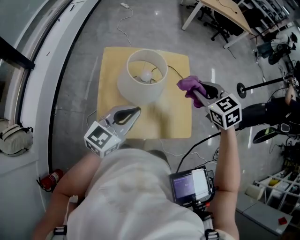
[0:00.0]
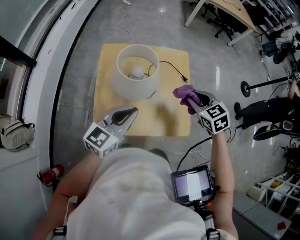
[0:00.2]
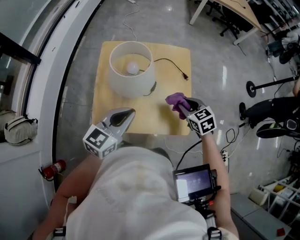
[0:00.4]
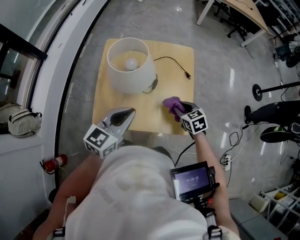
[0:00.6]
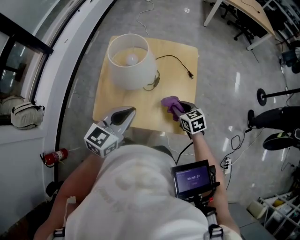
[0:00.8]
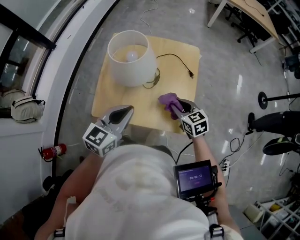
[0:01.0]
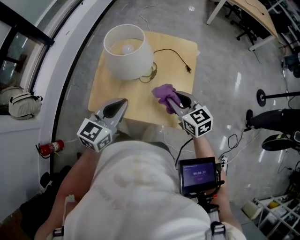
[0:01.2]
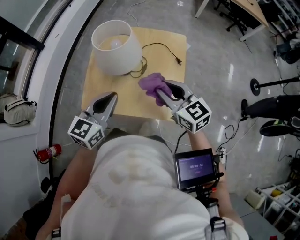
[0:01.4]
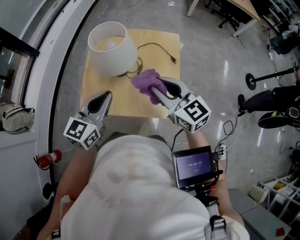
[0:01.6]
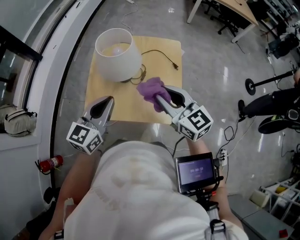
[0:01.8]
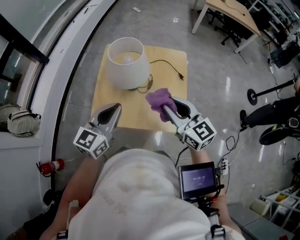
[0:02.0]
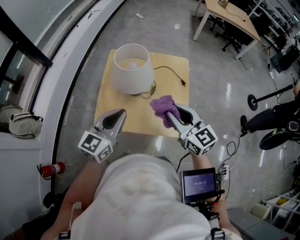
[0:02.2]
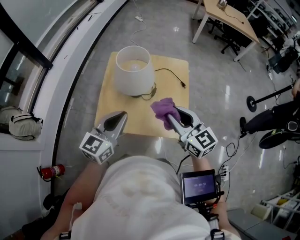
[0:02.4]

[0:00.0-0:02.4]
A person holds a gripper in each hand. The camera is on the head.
0:00.0 to 0:01.2: The left gripper heads backward and to the right, covering roughly 10 cm, and turns by approximately 20 degrees. Meanwhile the right gripper is displaced downward and backward by some 15 cm, and rotates some 30 degrees.
0:01.2 to 0:02.4: The left gripper shifts by about 5 cm. Meanwhile the right gripper goes approximately 15 cm upward and backward.

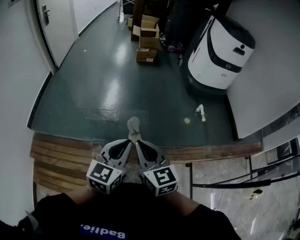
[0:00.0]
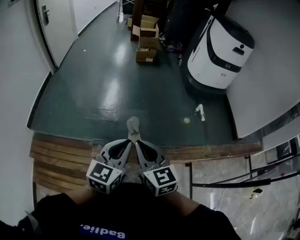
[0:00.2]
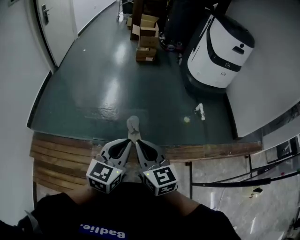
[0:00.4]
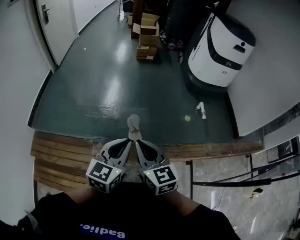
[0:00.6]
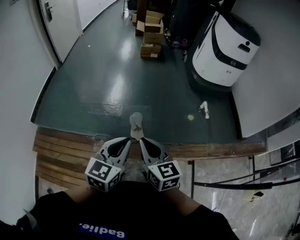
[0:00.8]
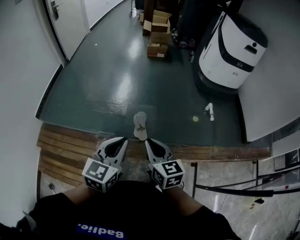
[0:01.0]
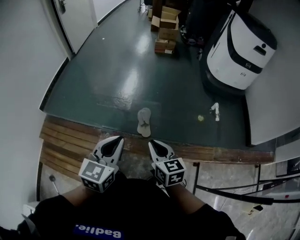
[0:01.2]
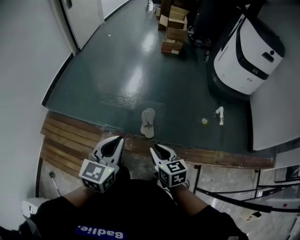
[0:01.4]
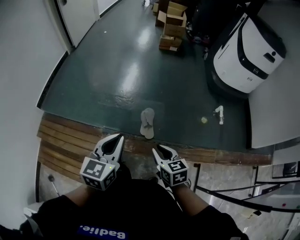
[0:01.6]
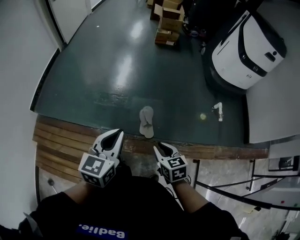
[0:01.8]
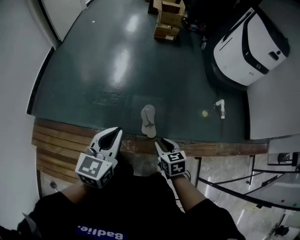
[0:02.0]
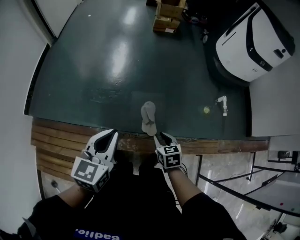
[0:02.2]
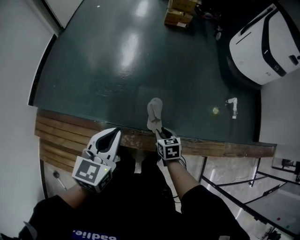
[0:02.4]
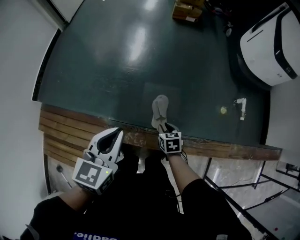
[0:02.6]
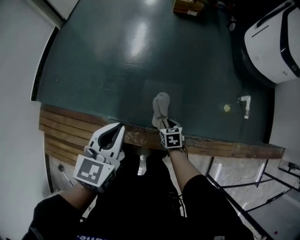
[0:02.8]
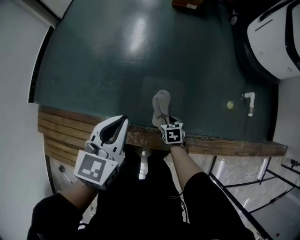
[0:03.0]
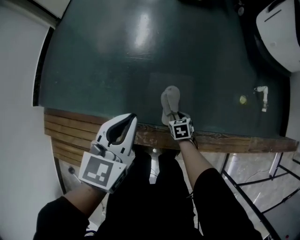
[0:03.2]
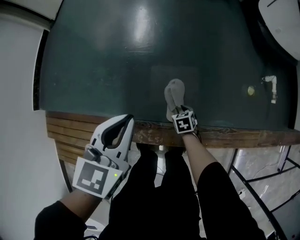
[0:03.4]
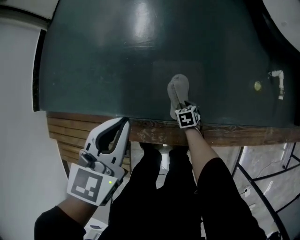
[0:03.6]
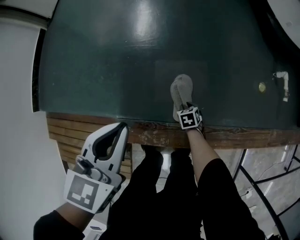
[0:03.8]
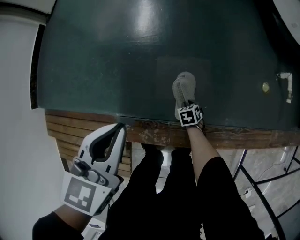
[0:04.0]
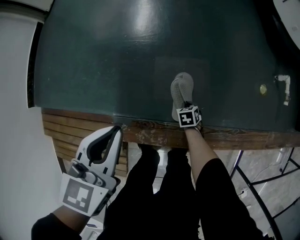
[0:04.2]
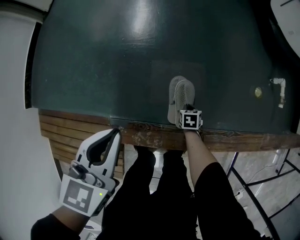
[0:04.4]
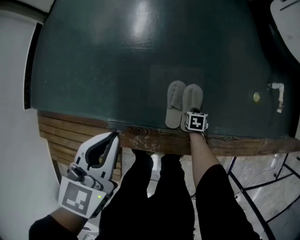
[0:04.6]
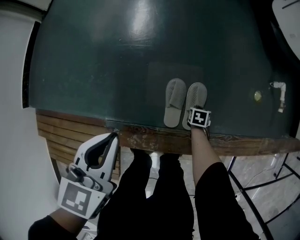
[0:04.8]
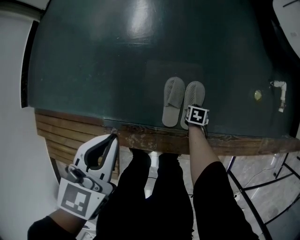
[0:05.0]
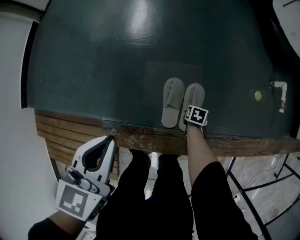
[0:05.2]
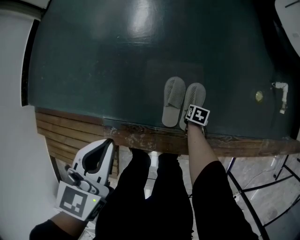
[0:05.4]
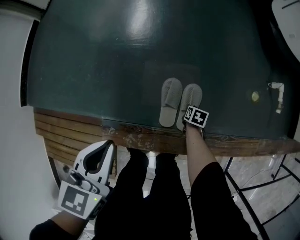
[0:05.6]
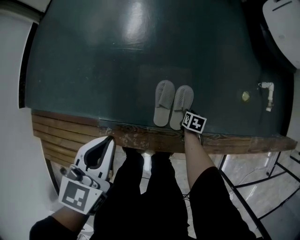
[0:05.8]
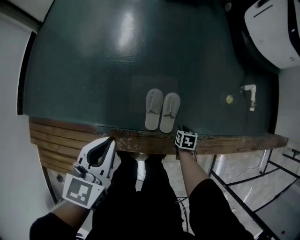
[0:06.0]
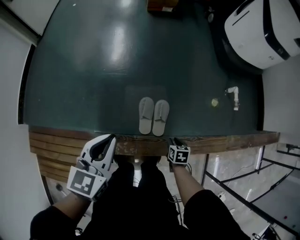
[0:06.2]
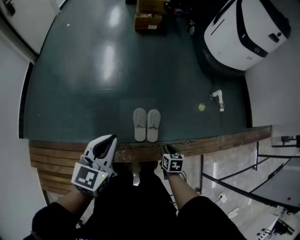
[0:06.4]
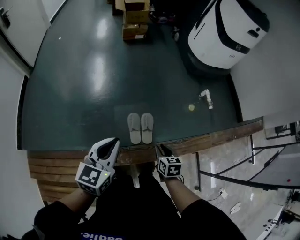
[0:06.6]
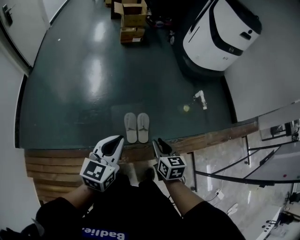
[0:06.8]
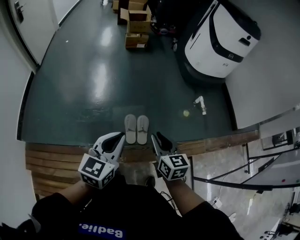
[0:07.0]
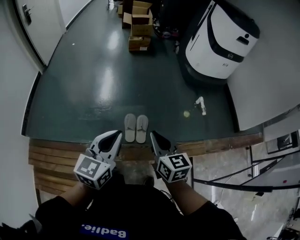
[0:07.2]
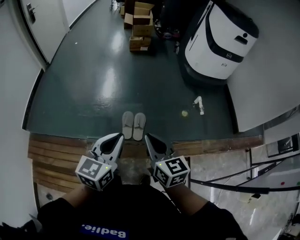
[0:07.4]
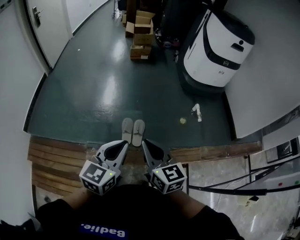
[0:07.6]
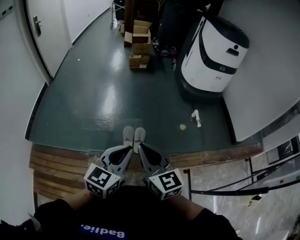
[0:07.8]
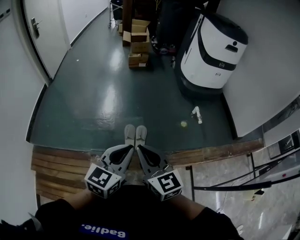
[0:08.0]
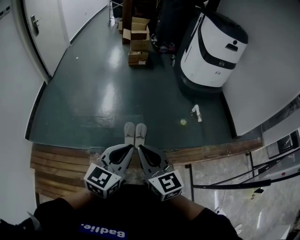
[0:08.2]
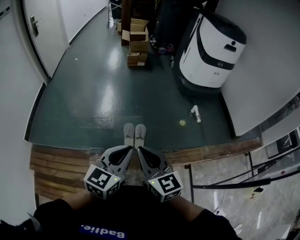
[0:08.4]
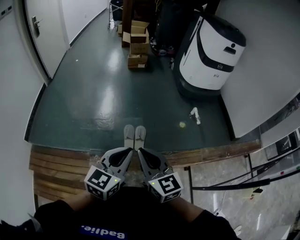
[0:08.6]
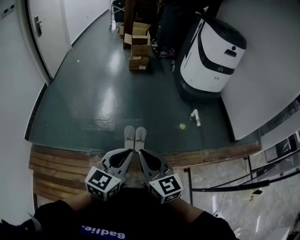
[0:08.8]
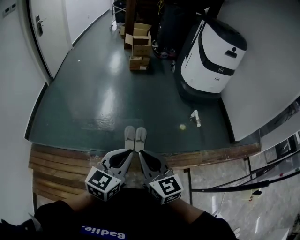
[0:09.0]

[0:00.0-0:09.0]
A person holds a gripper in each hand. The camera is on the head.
0:00.0 to 0:01.6: The right gripper heads downward, covering about 15 cm, and rotates roughly 30 degrees. Meanwhile the left gripper heads to the left, forward and downward, covering some 10 cm.
0:01.6 to 0:03.0: The right gripper goes roughly 40 cm downward and forward, and turns by approximately 30 degrees, while the left gripper heads forward and downward, covering some 30 cm.
0:03.0 to 0:04.4: The right gripper shifts roughly 20 cm downward; the left gripper heads downward, covering roughly 15 cm.
0:04.4 to 0:06.0: The right gripper changes place by some 15 cm, and opens up, while the left gripper moves upward, some 5 cm.
0:06.0 to 0:07.6: The right gripper shifts approximately 70 cm upward and backward, tips its fingers upward by roughly 60 degrees, and closes. The left gripper shifts some 40 cm upward, backward and to the right, and turns by about 20 degrees.
0:07.6 to 0:09.0: The grippers both shift backward by some 5 cm.

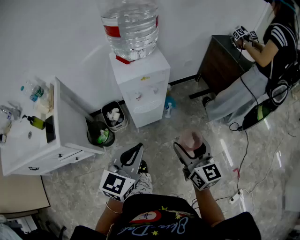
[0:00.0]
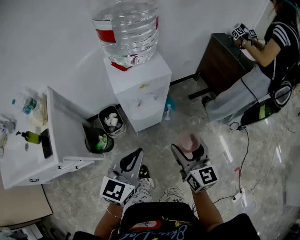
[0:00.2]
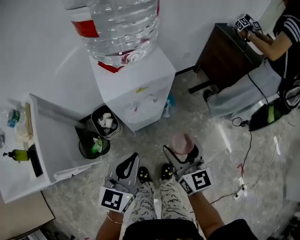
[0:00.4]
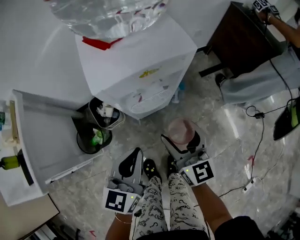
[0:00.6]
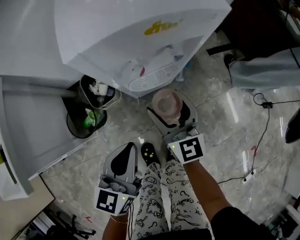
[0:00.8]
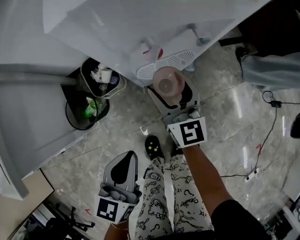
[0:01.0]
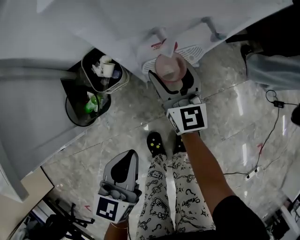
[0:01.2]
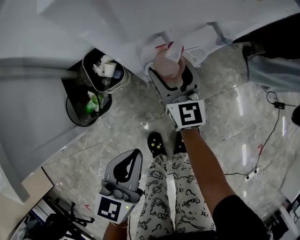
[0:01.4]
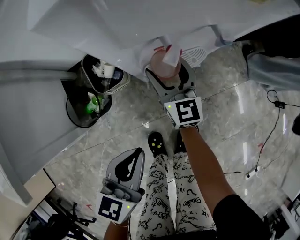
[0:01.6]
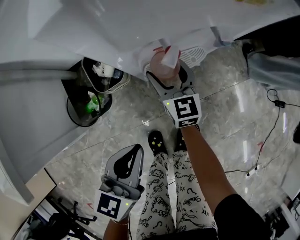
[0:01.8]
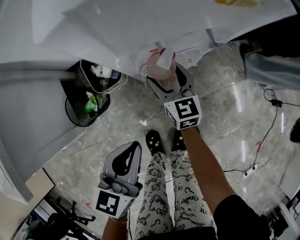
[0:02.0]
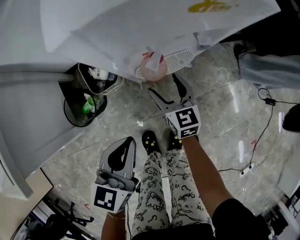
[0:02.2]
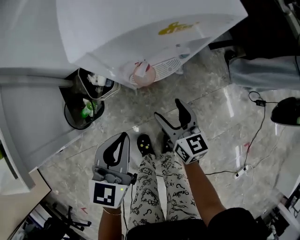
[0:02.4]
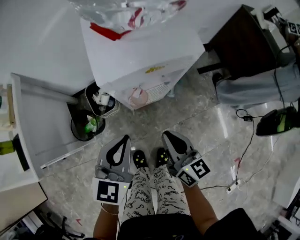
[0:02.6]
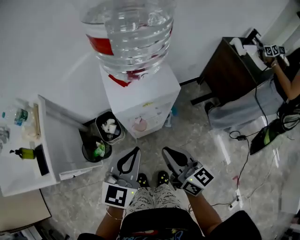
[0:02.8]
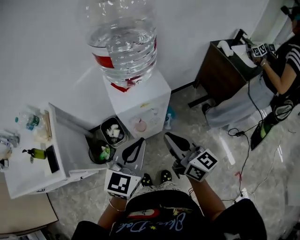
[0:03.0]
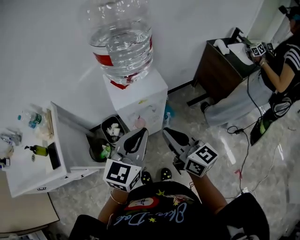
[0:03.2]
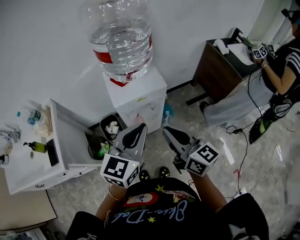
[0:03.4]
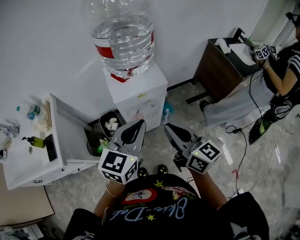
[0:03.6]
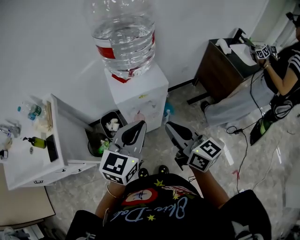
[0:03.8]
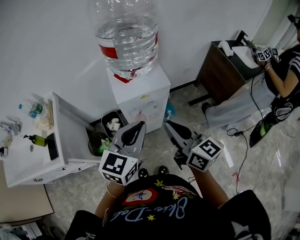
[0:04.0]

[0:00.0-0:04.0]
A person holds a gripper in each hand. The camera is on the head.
0:00.0 to 0:01.4: The right gripper travels downward, forward and to the left by approximately 60 cm. Meanwhile the left gripper travels downward by roughly 35 cm.
0:01.4 to 0:02.6: The left gripper is displaced upward by about 15 cm. Meanwhile the right gripper goes approximately 25 cm upward, backward and to the right, rotates about 30 degrees, and closes its fingers.
0:02.6 to 0:04.0: Both grippers travel together upward, roughly 25 cm.

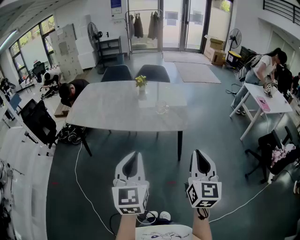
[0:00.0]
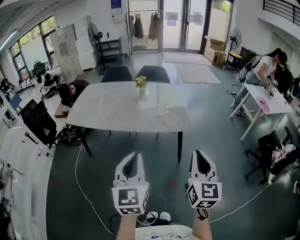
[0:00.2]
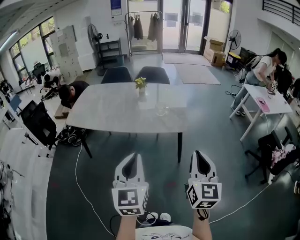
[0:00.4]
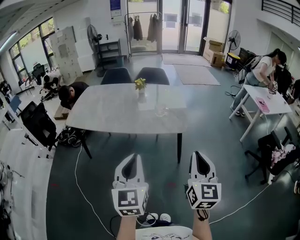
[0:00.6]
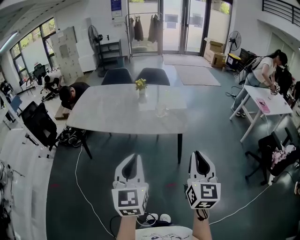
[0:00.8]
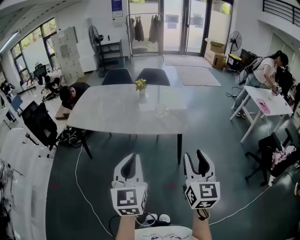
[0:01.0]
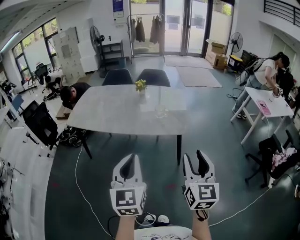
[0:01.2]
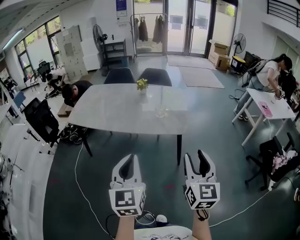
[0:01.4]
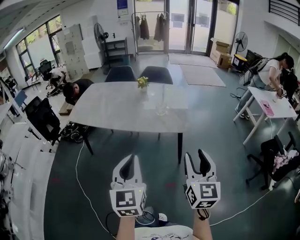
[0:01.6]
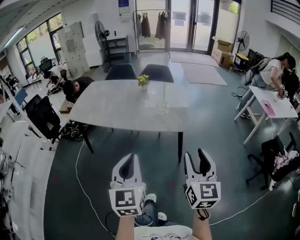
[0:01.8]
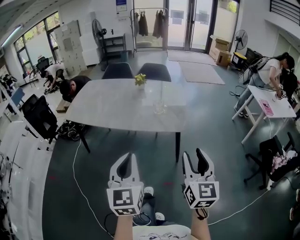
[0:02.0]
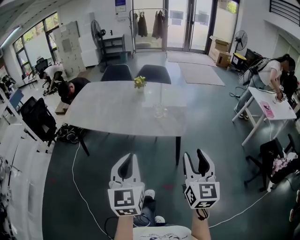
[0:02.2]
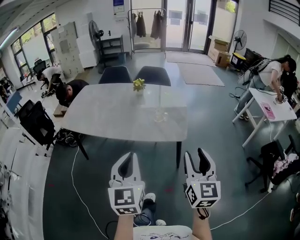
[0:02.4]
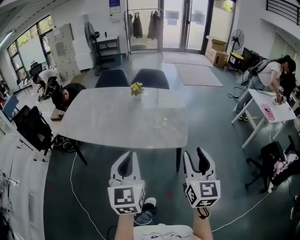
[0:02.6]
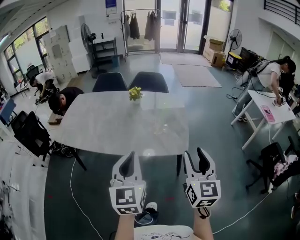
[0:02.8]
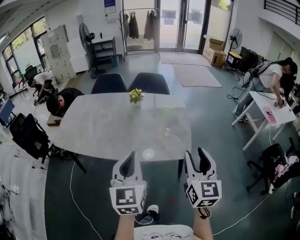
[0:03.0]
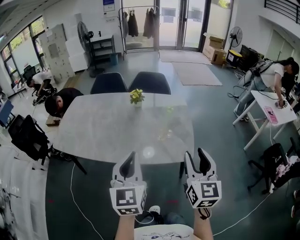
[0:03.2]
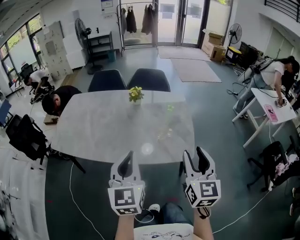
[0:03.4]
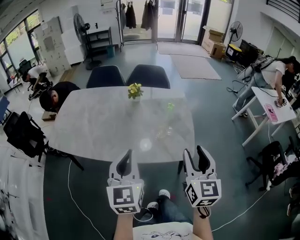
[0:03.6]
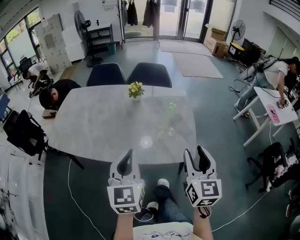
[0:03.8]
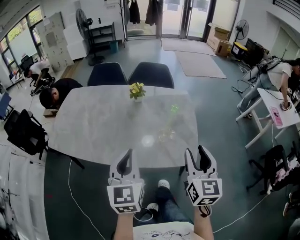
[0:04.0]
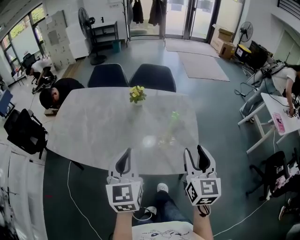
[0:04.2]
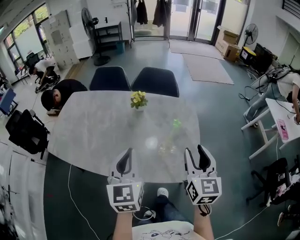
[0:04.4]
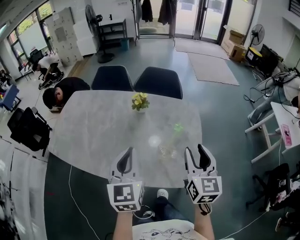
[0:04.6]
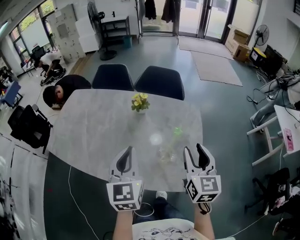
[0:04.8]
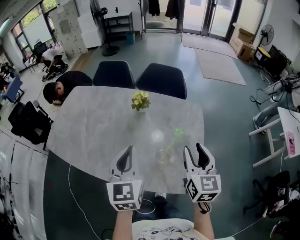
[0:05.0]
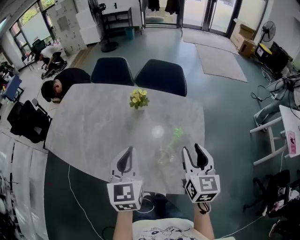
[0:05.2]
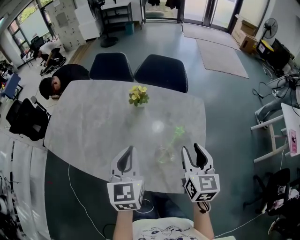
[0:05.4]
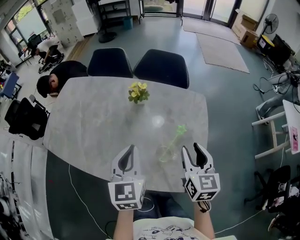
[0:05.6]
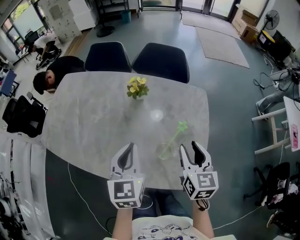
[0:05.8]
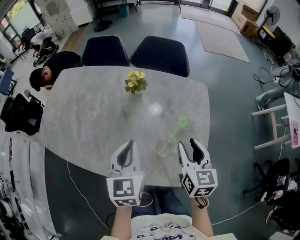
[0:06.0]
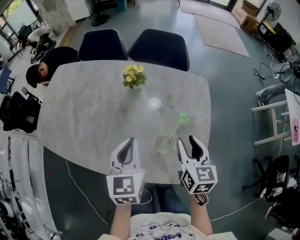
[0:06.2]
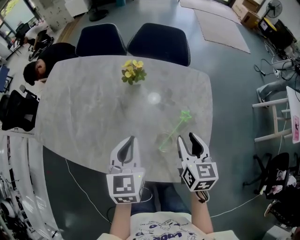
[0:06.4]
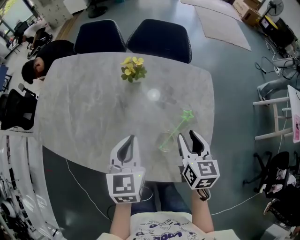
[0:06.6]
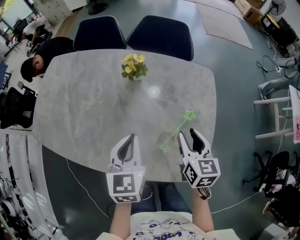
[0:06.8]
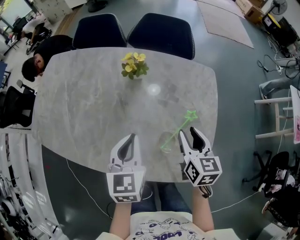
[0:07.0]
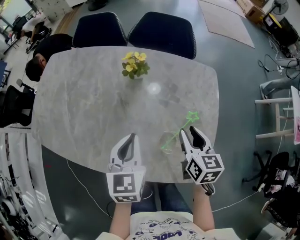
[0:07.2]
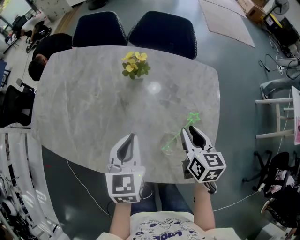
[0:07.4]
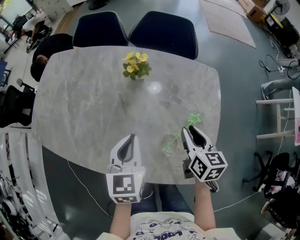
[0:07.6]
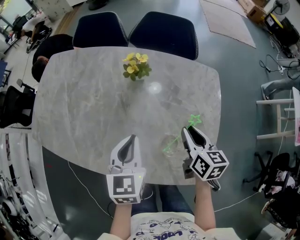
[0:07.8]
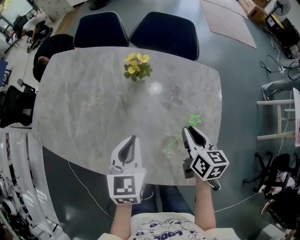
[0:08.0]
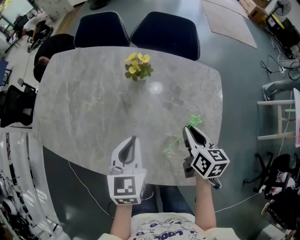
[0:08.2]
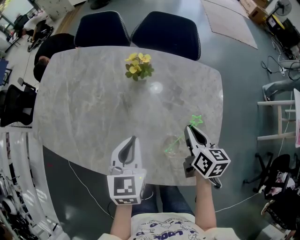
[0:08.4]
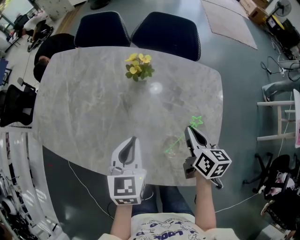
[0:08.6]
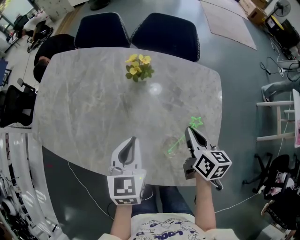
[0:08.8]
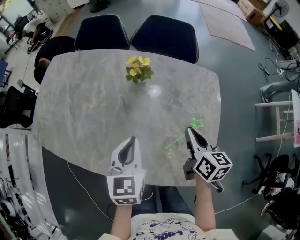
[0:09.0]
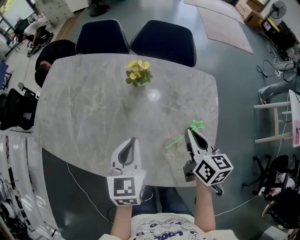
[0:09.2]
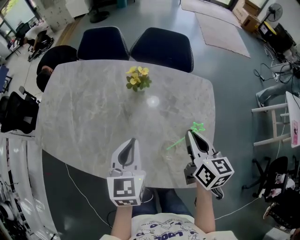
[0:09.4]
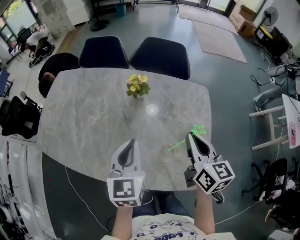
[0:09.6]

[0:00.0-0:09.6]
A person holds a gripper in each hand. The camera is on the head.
0:00.0 to 0:01.6: The right gripper opens.
0:01.6 to 0:03.2: The two grippers go roughly 30 cm forward.
0:03.2 to 0:04.8: The two grippers go roughly 25 cm forward.
0:04.8 to 0:06.4: Both grippers travel together downward and forward, roughly 15 cm.
0:06.4 to 0:08.0: The left gripper moves some 5 cm, while the right gripper moves forward, about 5 cm, and closes.
0:08.0 to 0:09.6: The right gripper travels upward by some 15 cm. Meanwhile the left gripper goes roughly 5 cm upward.
